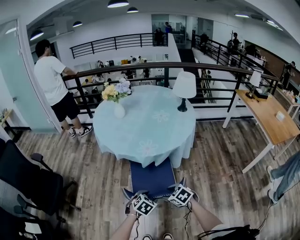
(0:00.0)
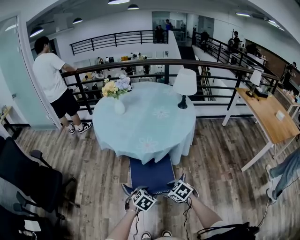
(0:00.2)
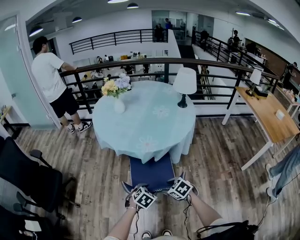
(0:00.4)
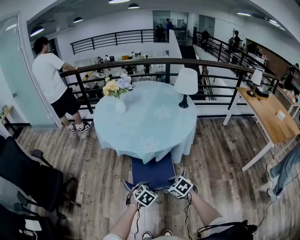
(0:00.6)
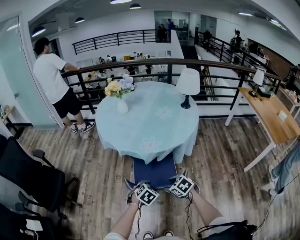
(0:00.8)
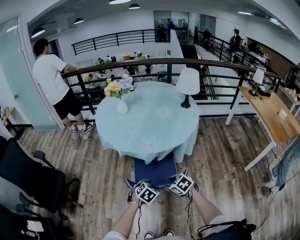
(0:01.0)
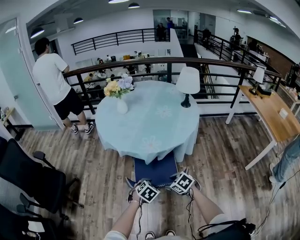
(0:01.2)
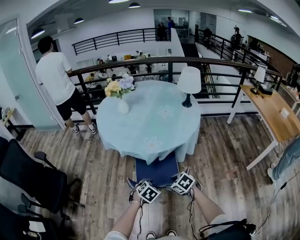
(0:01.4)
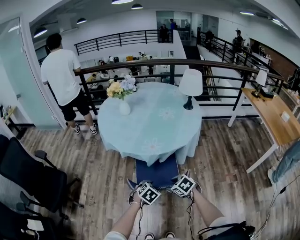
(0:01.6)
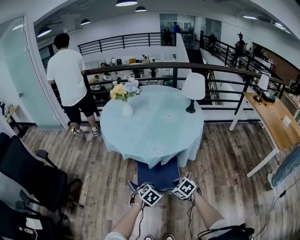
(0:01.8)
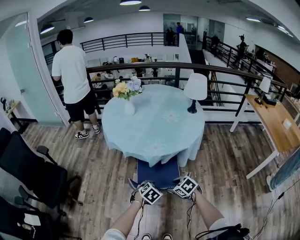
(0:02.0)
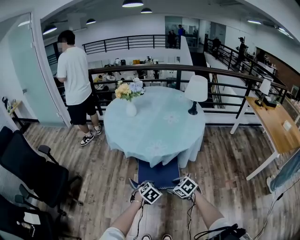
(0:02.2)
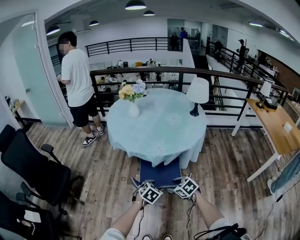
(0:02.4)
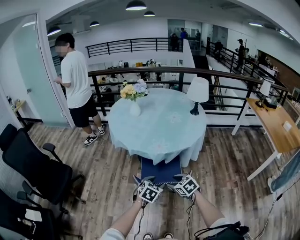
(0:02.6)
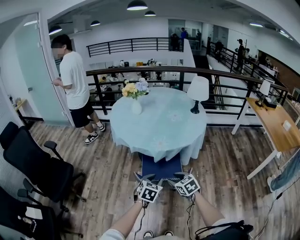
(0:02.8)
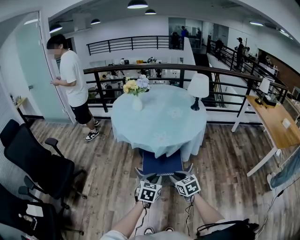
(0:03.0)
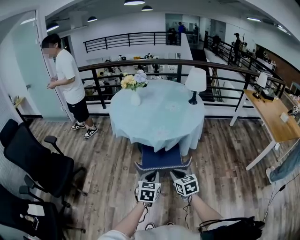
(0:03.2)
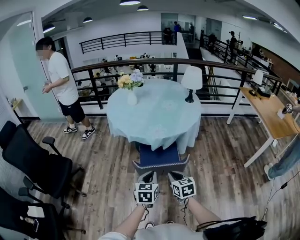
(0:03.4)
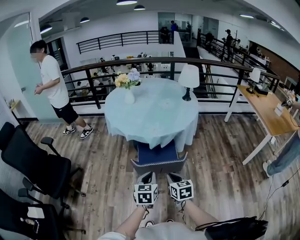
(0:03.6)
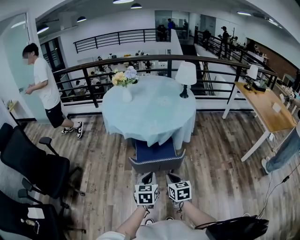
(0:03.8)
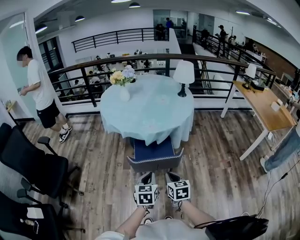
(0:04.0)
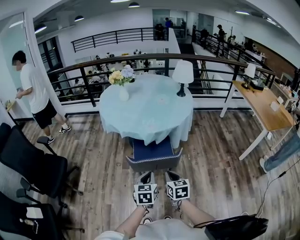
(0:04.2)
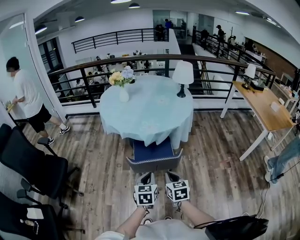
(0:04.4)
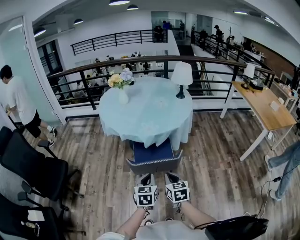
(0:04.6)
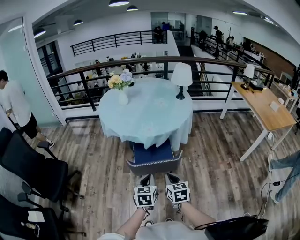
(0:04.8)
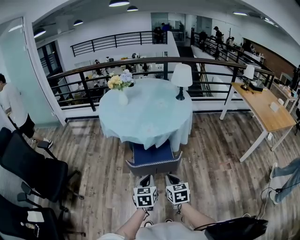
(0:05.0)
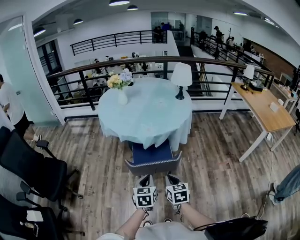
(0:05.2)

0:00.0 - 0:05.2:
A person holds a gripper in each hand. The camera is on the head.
0:00.0 - 0:01.8: The grippers both shift forward by about 5 cm.
0:01.8 - 0:03.4: The left gripper moves upward, backward and to the left, some 15 cm, points its fingers roughly 30 degrees further upward, and closes up. Meanwhile the right gripper moves backward and upward, about 15 cm, changes its angle by about 40 degrees, and closes up.
0:03.4 - 0:05.2: There are only small adjustments of the grippers.

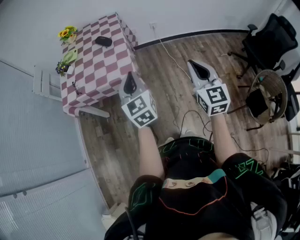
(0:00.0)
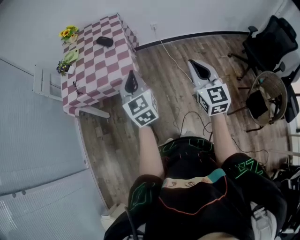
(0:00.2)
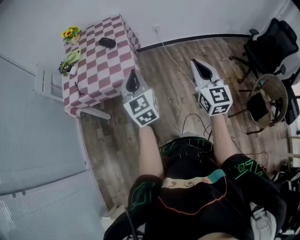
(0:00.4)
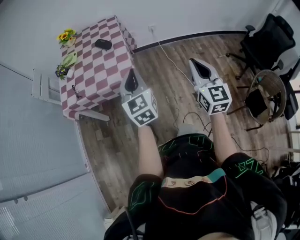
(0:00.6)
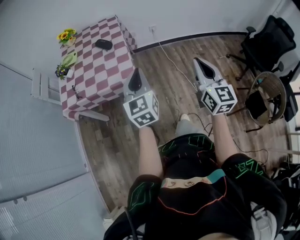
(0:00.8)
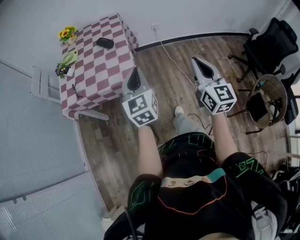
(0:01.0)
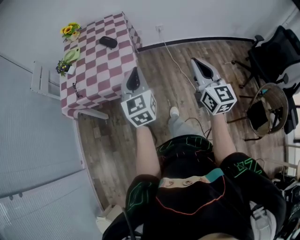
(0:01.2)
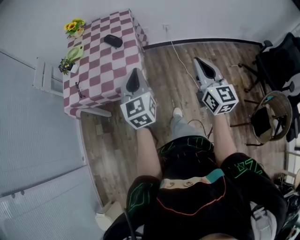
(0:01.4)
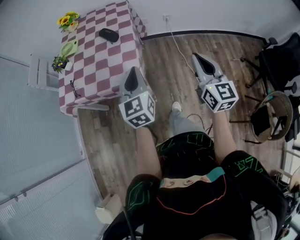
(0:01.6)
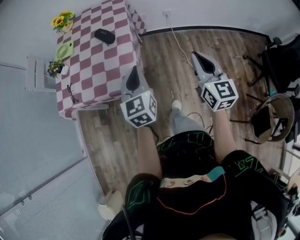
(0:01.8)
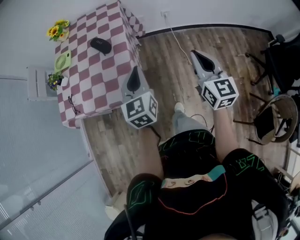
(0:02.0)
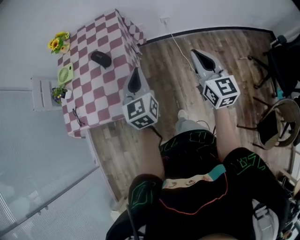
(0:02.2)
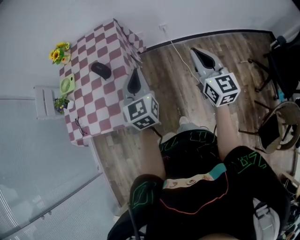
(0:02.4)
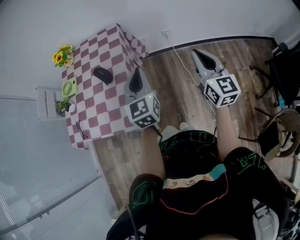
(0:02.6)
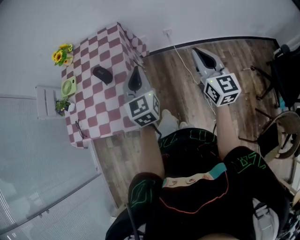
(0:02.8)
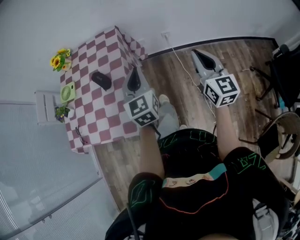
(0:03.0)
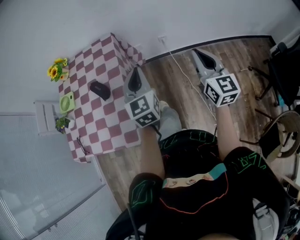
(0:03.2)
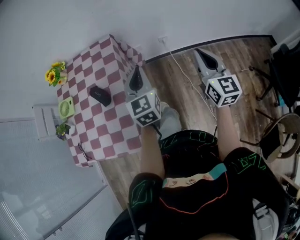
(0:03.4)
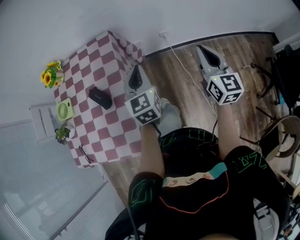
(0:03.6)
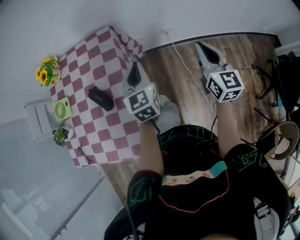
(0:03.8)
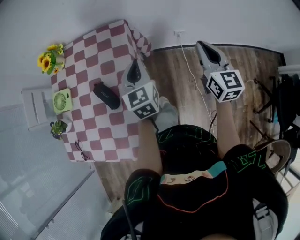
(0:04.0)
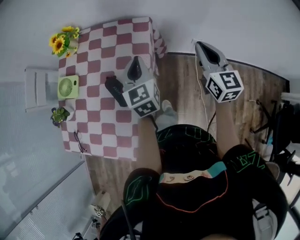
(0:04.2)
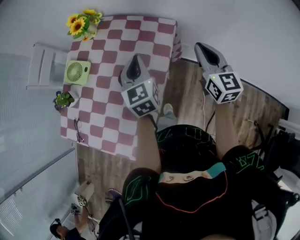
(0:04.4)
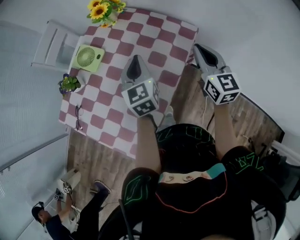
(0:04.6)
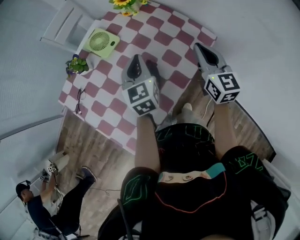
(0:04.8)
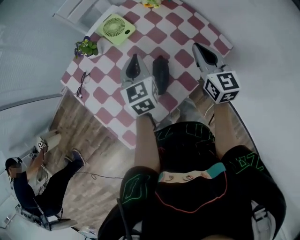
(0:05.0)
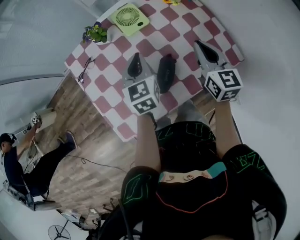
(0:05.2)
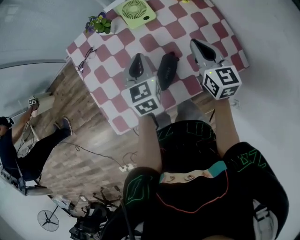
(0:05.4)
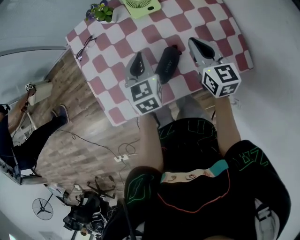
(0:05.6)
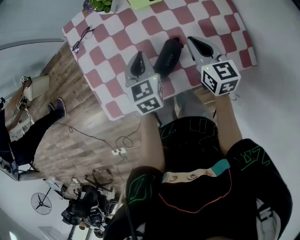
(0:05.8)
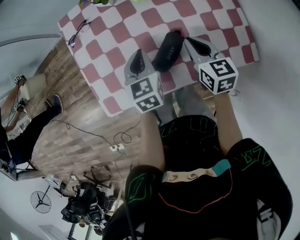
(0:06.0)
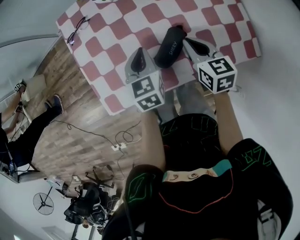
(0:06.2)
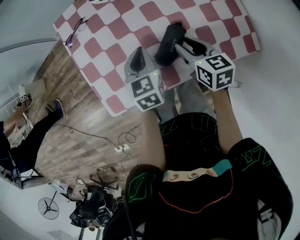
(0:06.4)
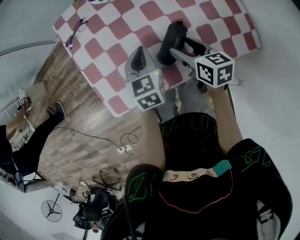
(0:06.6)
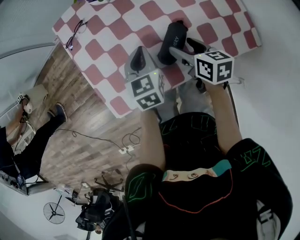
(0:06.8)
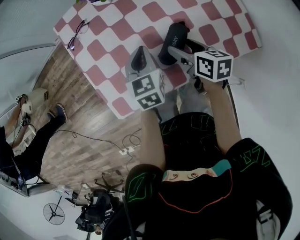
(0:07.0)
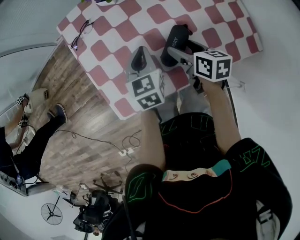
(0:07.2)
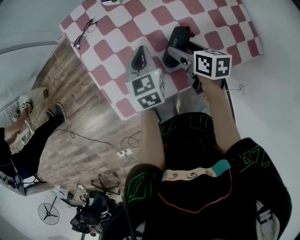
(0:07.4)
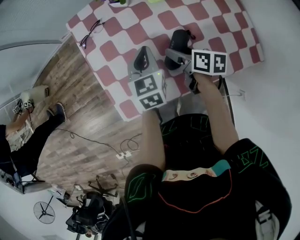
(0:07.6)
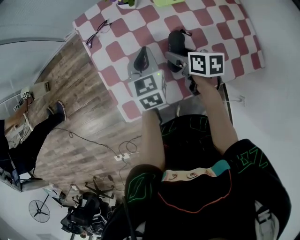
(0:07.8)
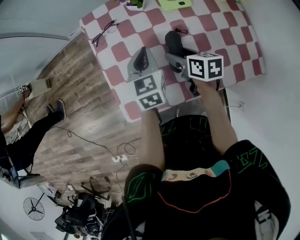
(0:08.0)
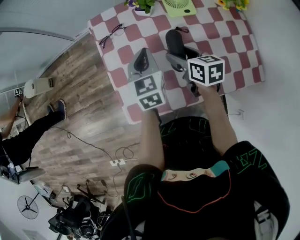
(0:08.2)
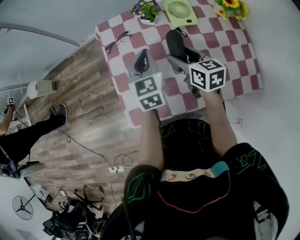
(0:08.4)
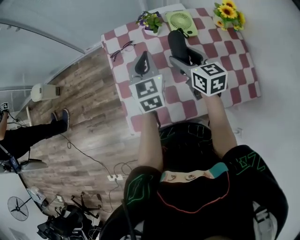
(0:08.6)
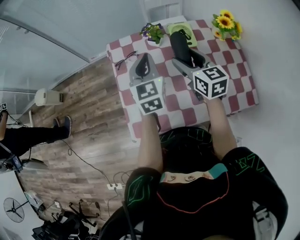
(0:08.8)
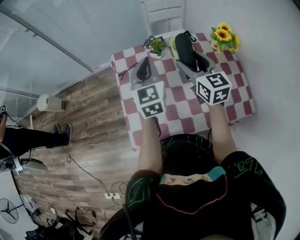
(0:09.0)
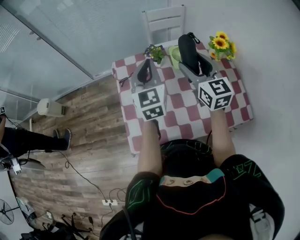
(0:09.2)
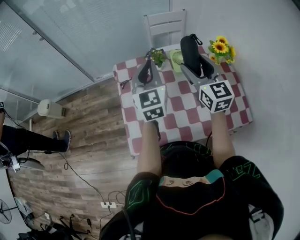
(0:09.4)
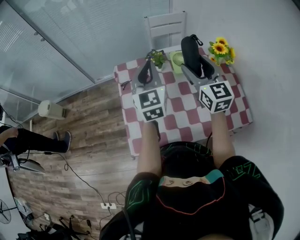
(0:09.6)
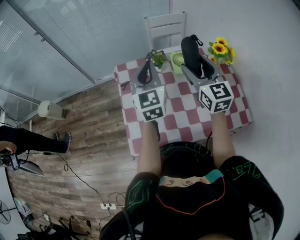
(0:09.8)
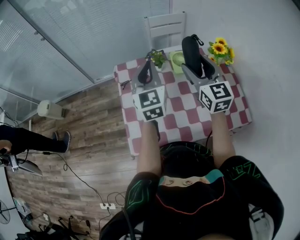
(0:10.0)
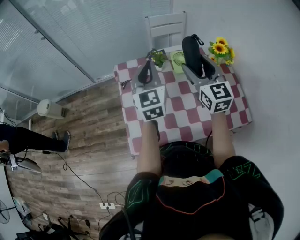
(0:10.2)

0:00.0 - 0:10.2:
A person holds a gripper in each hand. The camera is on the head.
0:00.0 - 0:01.4: The two grippers go some 10 cm forward.
0:01.4 - 0:03.0: Both grippers move forward and to the right, some 30 cm.
0:03.0 - 0:04.4: The left gripper shifts by approximately 35 cm, and changes its angle by some 30 degrees. Meanwhile the right gripper shifts by approximately 40 cm, and changes its angle by about 30 degrees.
0:04.4 - 0:05.8: The left gripper moves roughly 25 cm, and turns by some 50 degrees, while the right gripper shifts by about 30 cm, and turns by about 60 degrees.
0:05.8 - 0:07.2: The right gripper is displaced to the left and downward by approximately 10 cm, turns by roughly 30 degrees, and opens.
0:07.2 - 0:08.8: The right gripper travels upward and forward by about 20 cm, and swivels about 40 degrees, while the left gripper goes about 20 cm upward, forward and to the left, and rotates about 20 degrees.
0:08.8 - 0:10.2: Both grippers move upward, roughly 10 cm. The right gripper swivels about 20 degrees.

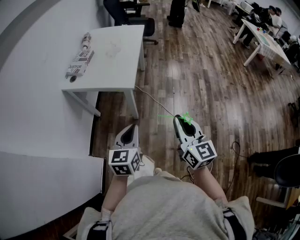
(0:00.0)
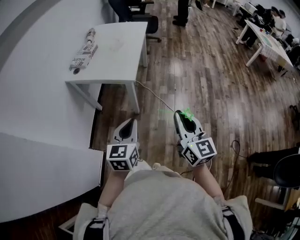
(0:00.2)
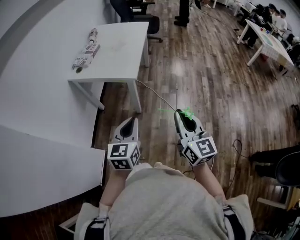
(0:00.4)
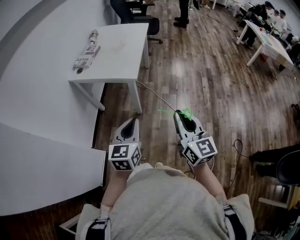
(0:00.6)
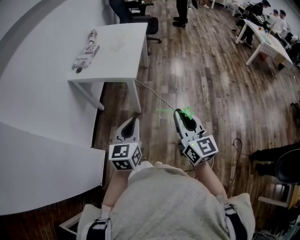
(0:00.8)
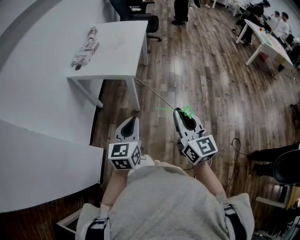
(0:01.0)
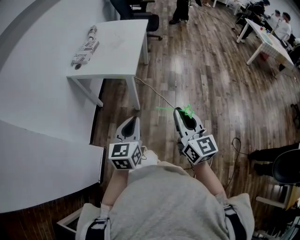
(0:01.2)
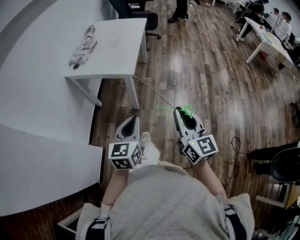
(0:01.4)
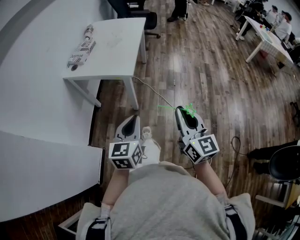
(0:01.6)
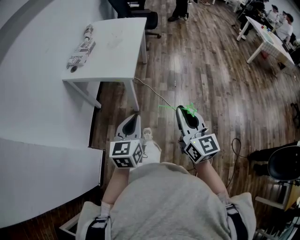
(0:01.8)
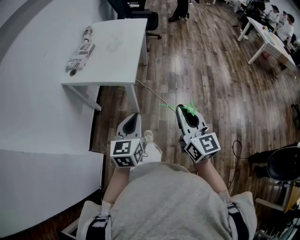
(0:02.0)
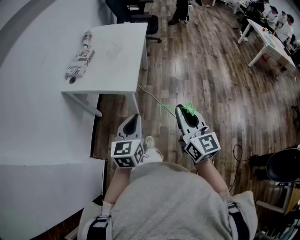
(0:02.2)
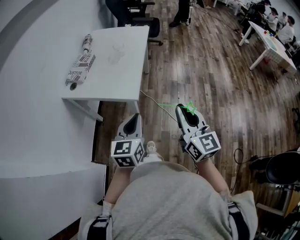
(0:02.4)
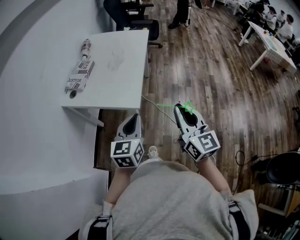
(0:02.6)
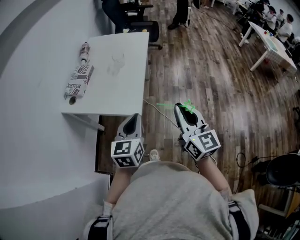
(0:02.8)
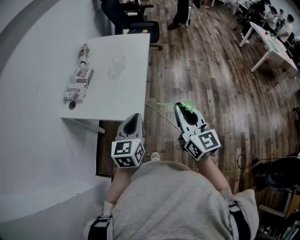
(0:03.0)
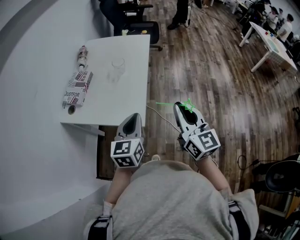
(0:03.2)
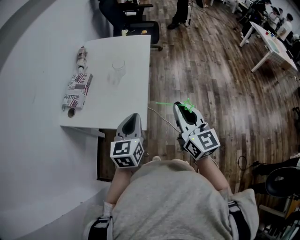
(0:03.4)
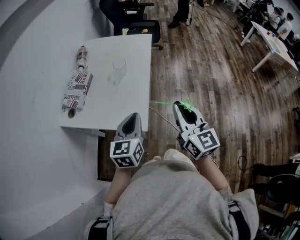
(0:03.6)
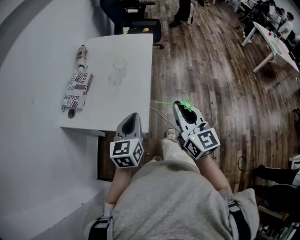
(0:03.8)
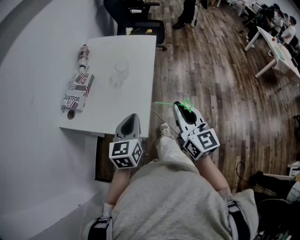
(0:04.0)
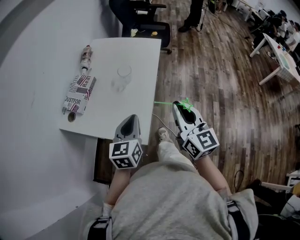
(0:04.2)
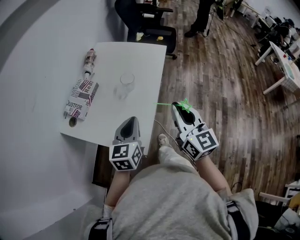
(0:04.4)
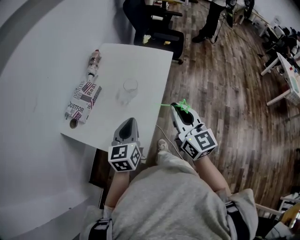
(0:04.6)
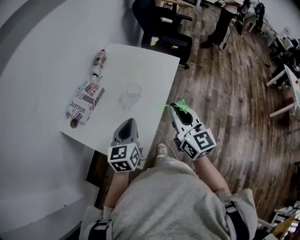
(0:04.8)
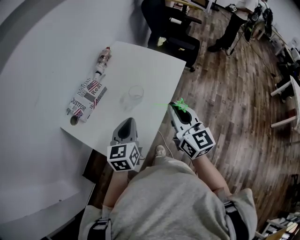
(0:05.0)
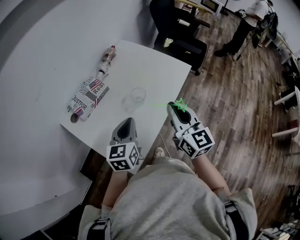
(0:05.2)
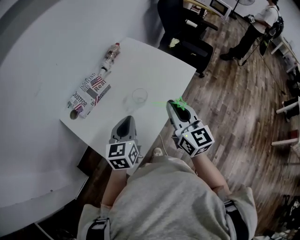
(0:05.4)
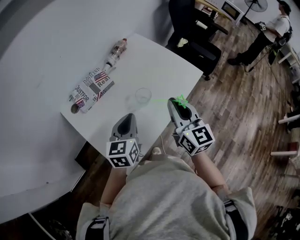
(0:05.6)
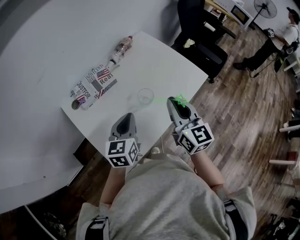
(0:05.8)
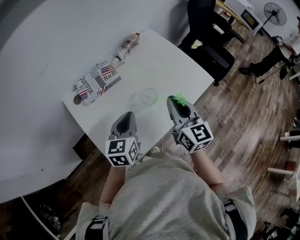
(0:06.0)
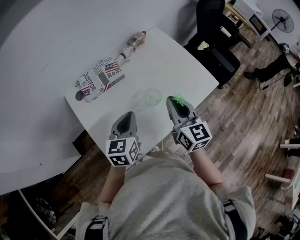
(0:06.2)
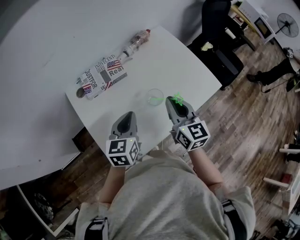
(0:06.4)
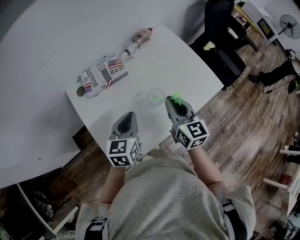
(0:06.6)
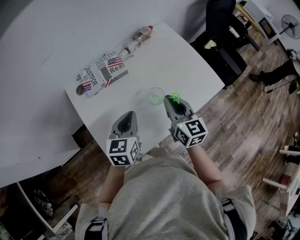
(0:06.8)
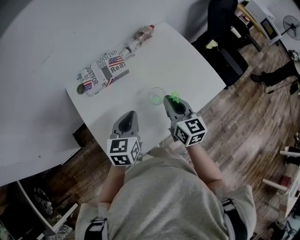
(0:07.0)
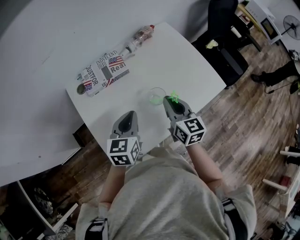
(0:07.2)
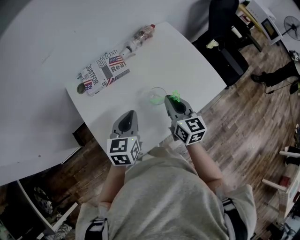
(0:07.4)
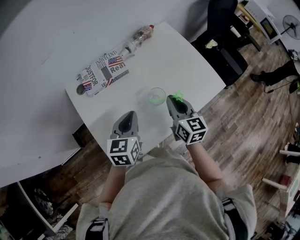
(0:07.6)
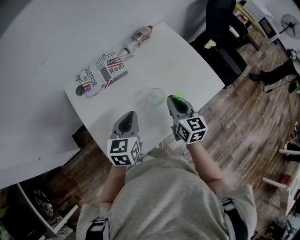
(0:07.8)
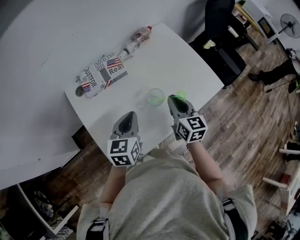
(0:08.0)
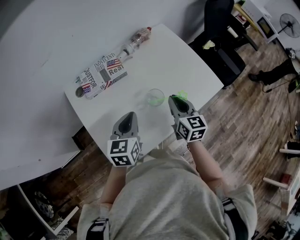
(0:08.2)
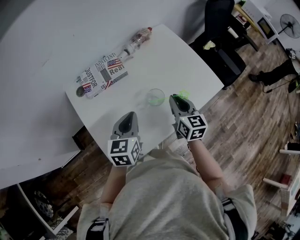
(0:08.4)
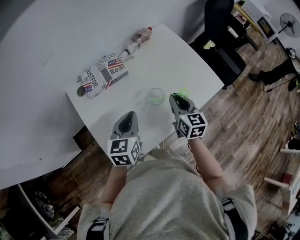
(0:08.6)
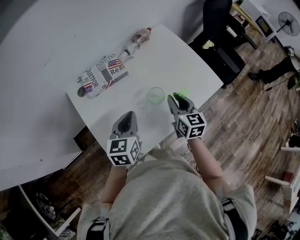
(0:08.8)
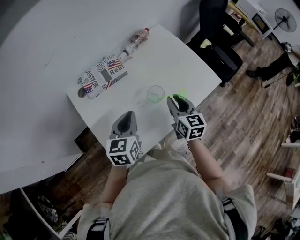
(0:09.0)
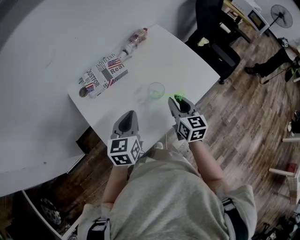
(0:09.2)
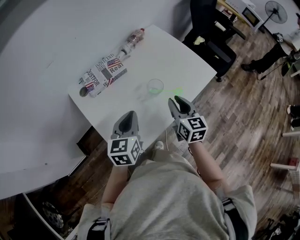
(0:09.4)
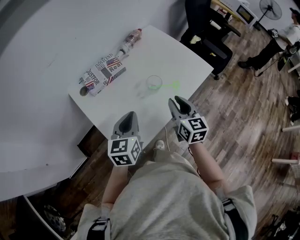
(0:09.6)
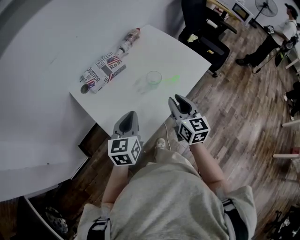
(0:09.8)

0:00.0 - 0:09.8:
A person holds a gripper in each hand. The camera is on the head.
0:00.0 - 0:01.4: Both grippers travel together backward, about 5 cm.
0:01.4 - 0:02.8: Both grippers travel together forward, roughly 30 cm.
0:02.8 - 0:04.2: Both grippers travel together forward, roughly 20 cm.
0:04.2 - 0:05.6: The right gripper shifts by about 30 cm, and rotates about 30 degrees, while the left gripper ends up about 20 cm from where it was, and changes its angle by some 30 degrees.
0:05.6 - 0:07.0: The right gripper goes some 15 cm downward and forward. Meanwhile the left gripper ends up roughly 5 cm from where it was.
0:07.0 - 0:08.4: The right gripper shifts by roughly 5 cm.
0:08.4 - 0:09.8: The right gripper shifts roughly 15 cm backward and upward. The left gripper shifts about 10 cm backward.
